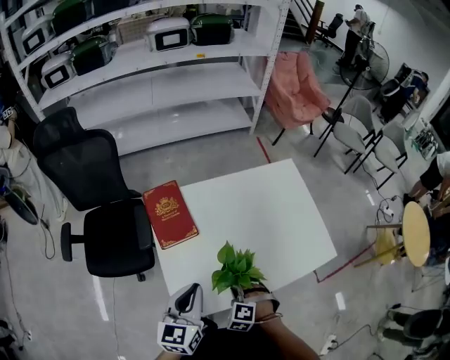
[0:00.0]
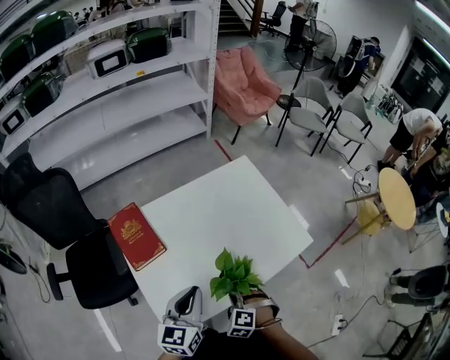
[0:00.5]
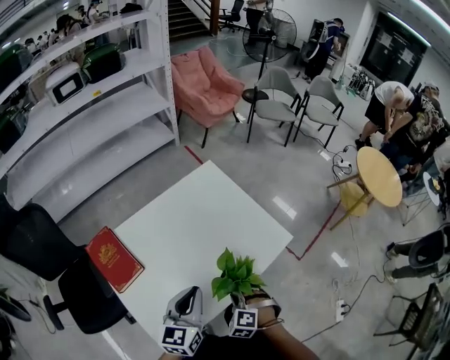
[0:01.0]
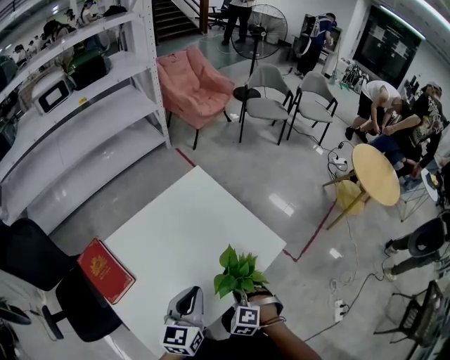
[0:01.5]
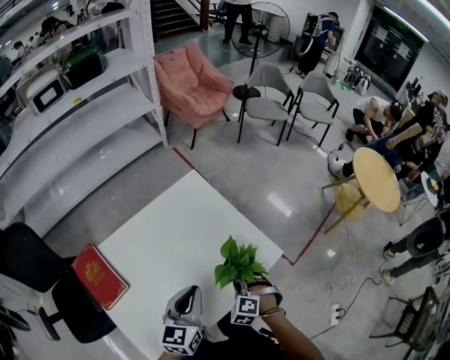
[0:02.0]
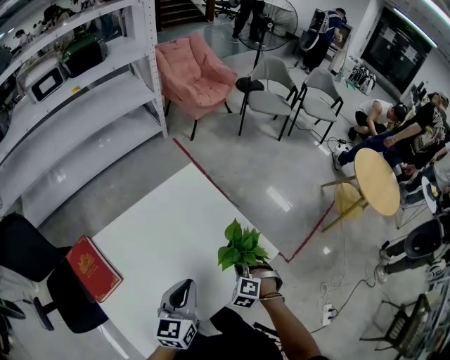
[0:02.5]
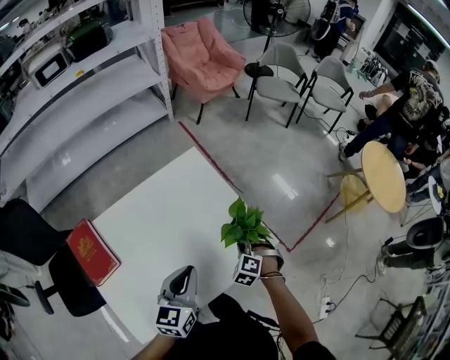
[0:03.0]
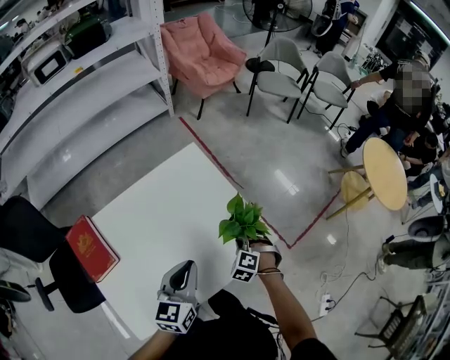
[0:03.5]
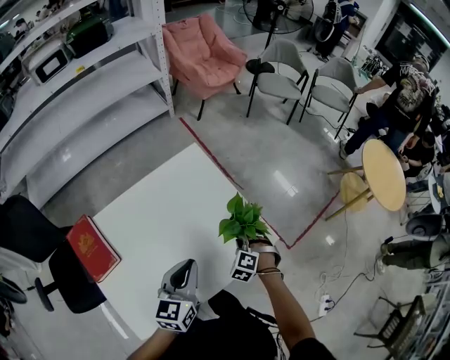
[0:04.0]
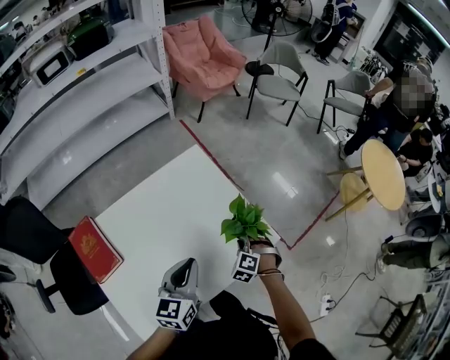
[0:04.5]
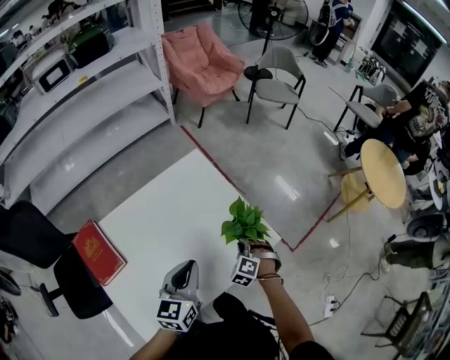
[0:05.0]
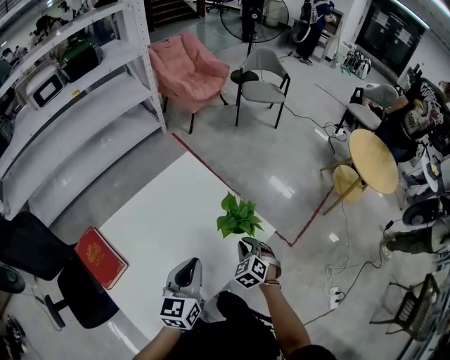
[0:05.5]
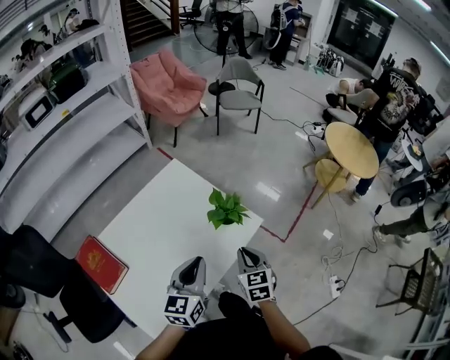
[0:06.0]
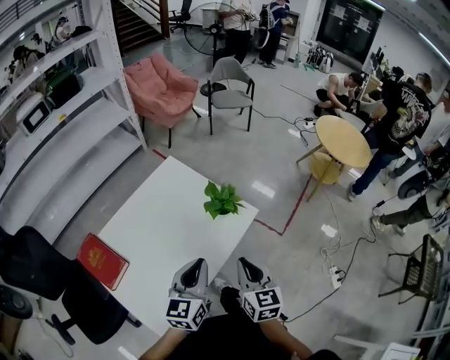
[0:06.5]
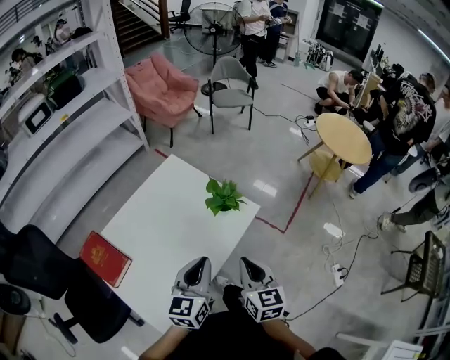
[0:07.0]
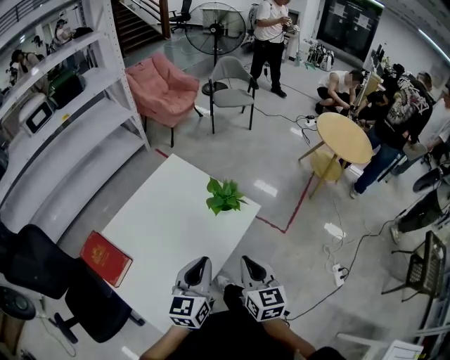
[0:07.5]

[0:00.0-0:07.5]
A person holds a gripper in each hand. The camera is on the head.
0:00.0 to 0:02.0: The left gripper shifts by some 30 cm, and turns by about 30 degrees; the right gripper moves roughly 30 cm, and rotates roughly 30 degrees.
0:02.0 to 0:04.0: The right gripper is displaced forward by some 10 cm.
0:04.0 to 0:05.5: The right gripper moves upward, approximately 10 cm, and rotates about 30 degrees.
0:05.5 to 0:07.5: The right gripper heads backward and upward, covering roughly 25 cm, and rolls clockwise, seen from behind, by roughly 50 degrees. Meanwhile the left gripper moves backward, roughly 10 cm.

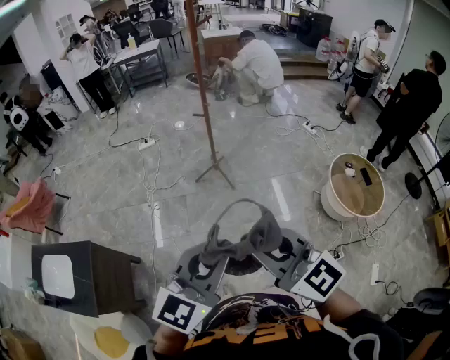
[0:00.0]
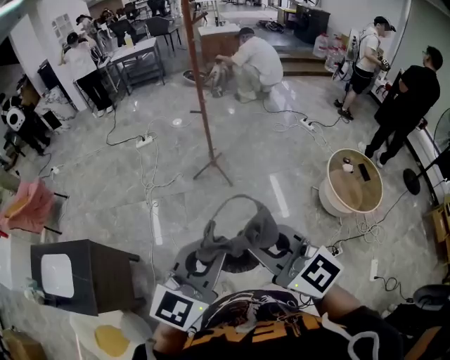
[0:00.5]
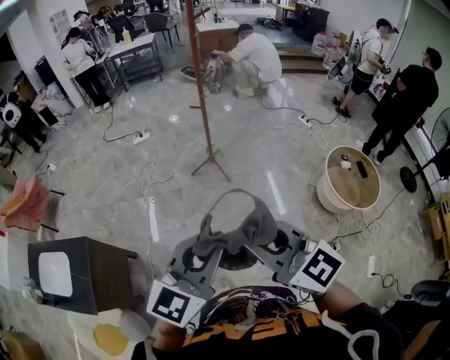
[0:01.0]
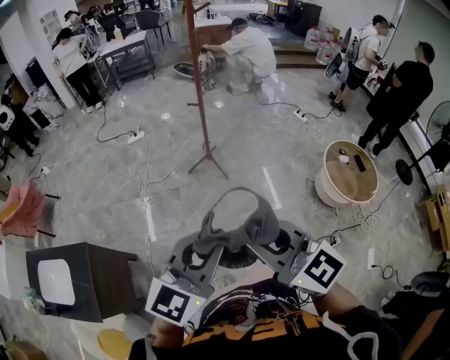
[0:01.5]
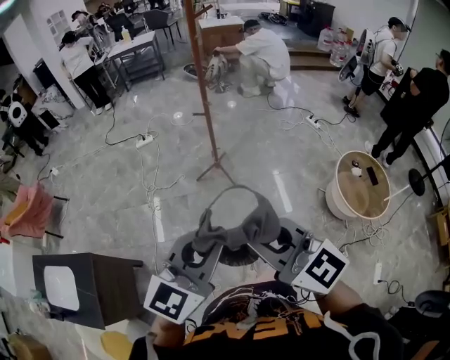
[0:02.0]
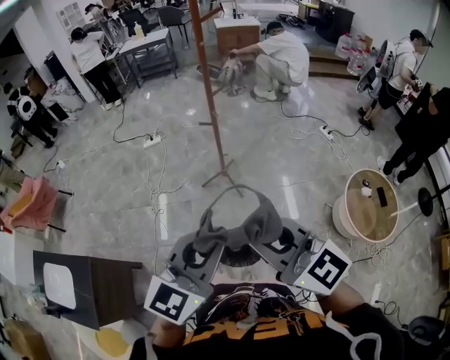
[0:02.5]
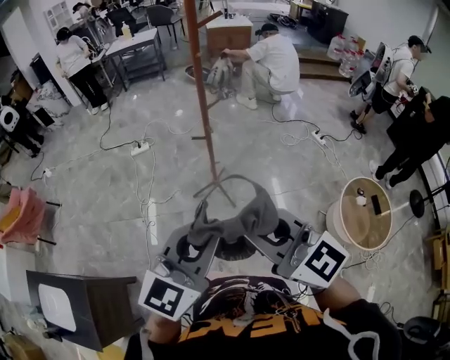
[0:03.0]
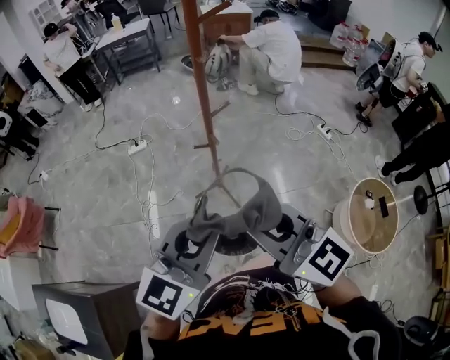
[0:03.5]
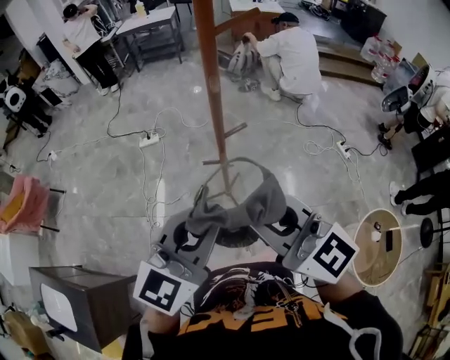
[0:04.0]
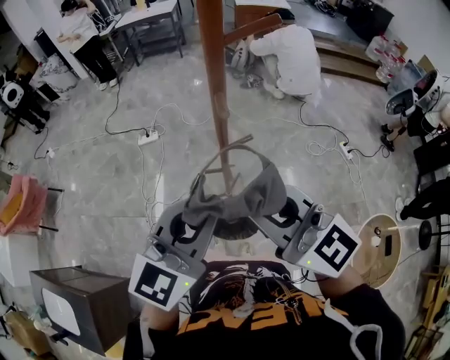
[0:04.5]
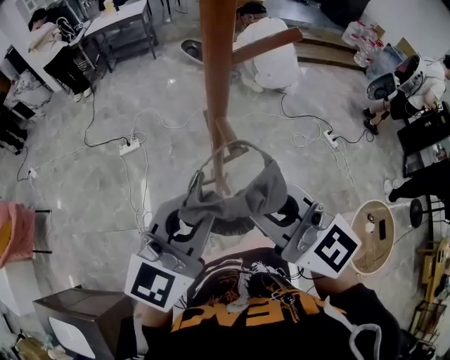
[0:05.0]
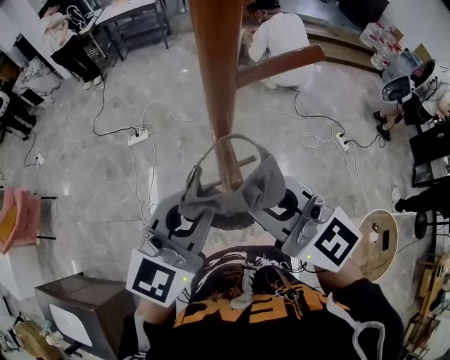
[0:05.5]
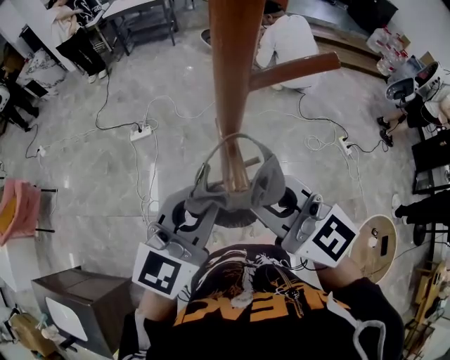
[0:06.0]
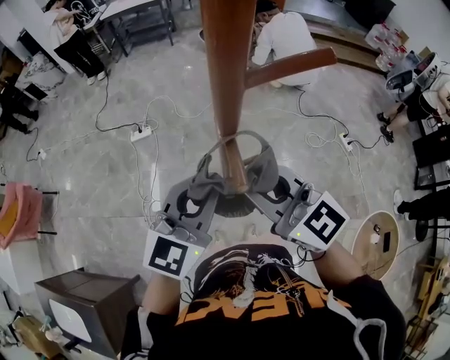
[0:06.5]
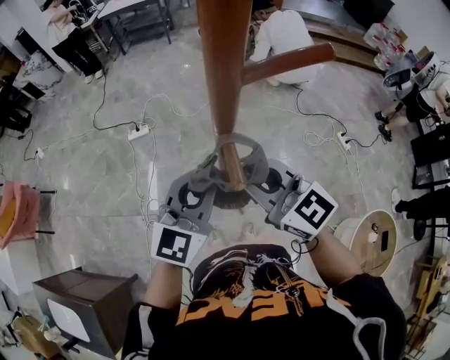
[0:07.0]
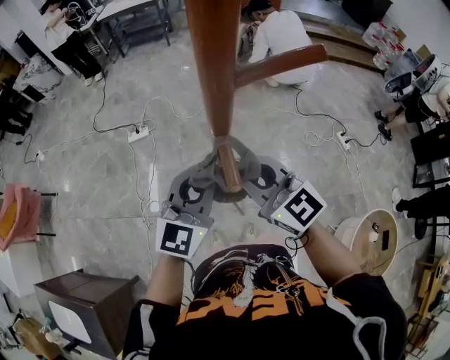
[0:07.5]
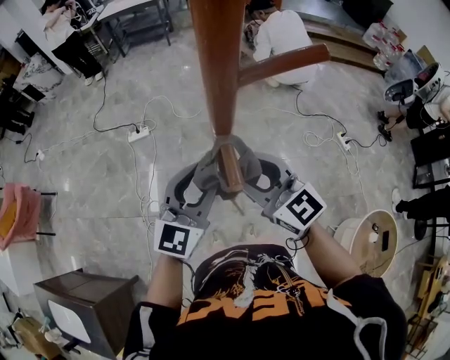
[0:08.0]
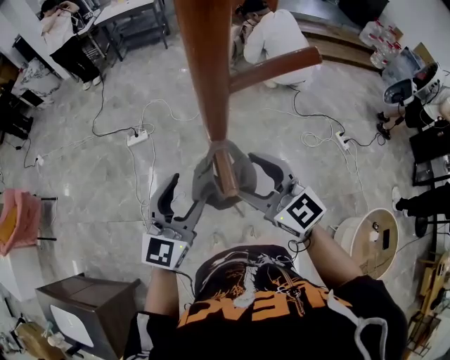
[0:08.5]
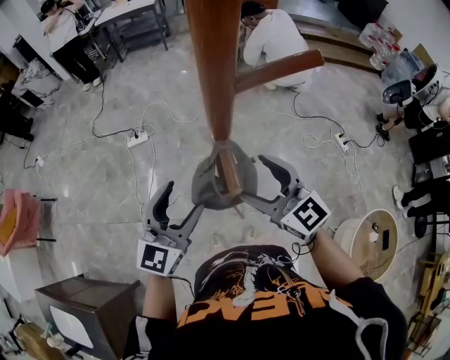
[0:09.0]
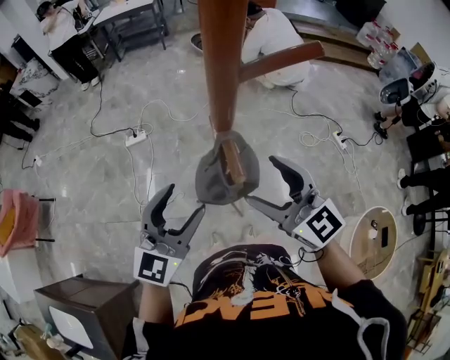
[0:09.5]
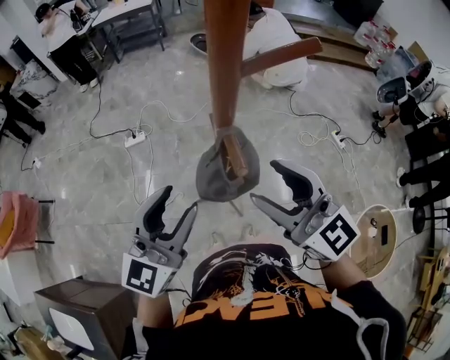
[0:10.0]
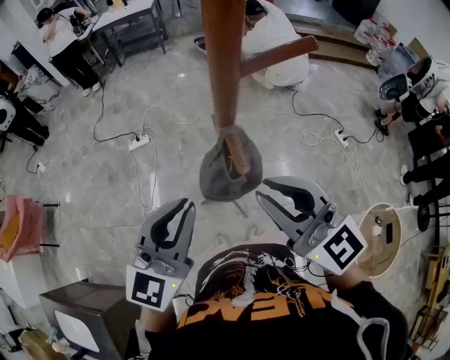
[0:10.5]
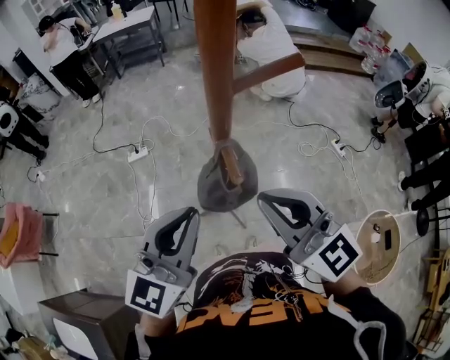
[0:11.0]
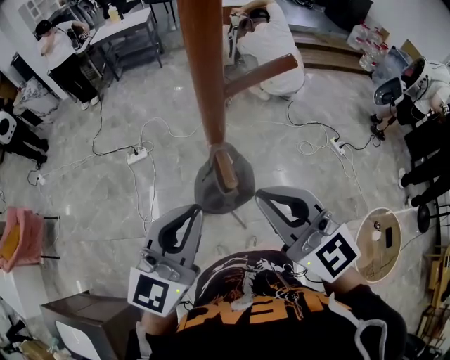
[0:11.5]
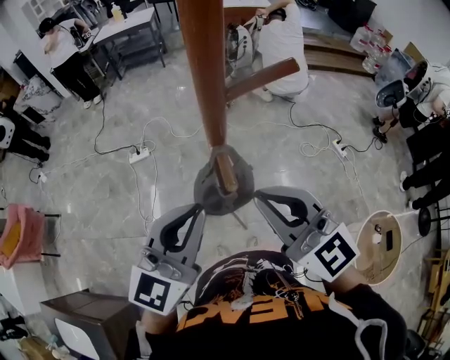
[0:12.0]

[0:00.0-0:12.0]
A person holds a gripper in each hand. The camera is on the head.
0:00.0 to 0:02.0: Both grippers travel together forward, roughly 15 cm.
0:02.0 to 0:04.0: The two grippers travel together, forward, about 50 cm.
0:04.0 to 0:06.0: The grippers both shift forward by roughly 20 cm.
0:06.0 to 0:08.0: Both grippers move downward, some 10 cm. The left gripper opens; the right gripper opens its fingers.
0:08.0 to 0:10.0: The left gripper is displaced to the left, backward and upward by about 10 cm. Meanwhile the right gripper goes some 10 cm upward and backward.
0:10.0 to 0:12.0: The right gripper closes. Meanwhile the left gripper ends up some 5 cm from where it was, and closes its fingers.

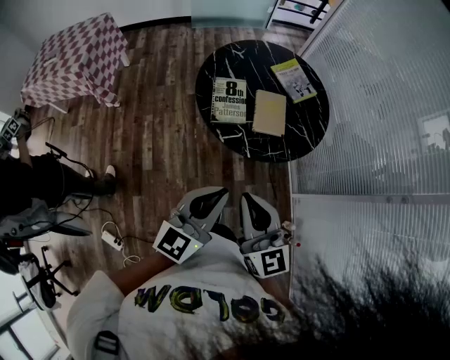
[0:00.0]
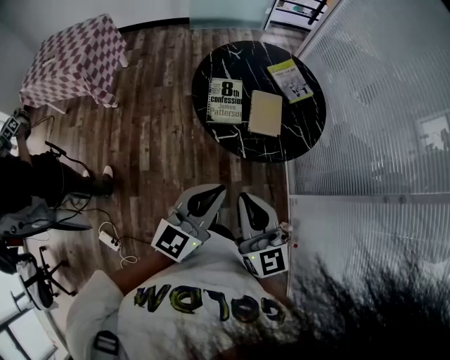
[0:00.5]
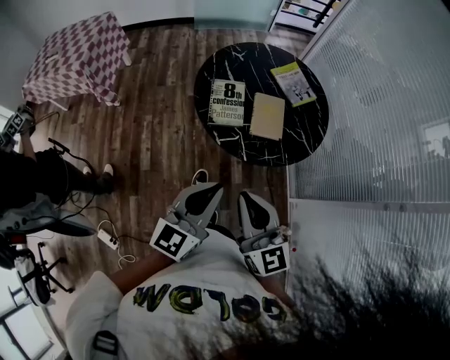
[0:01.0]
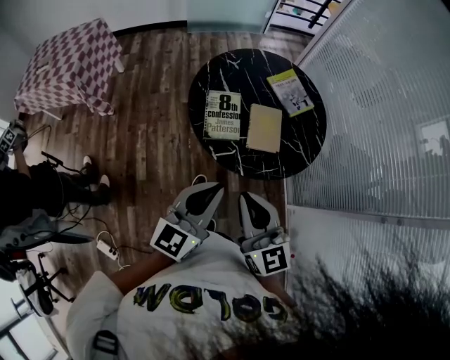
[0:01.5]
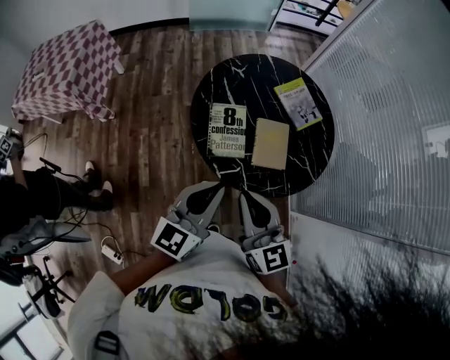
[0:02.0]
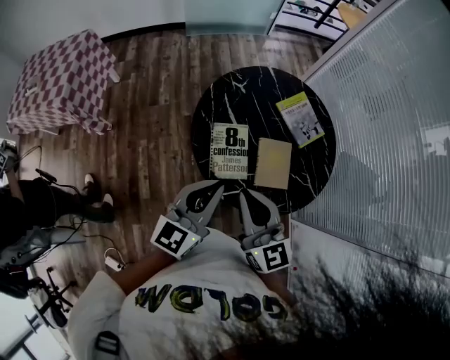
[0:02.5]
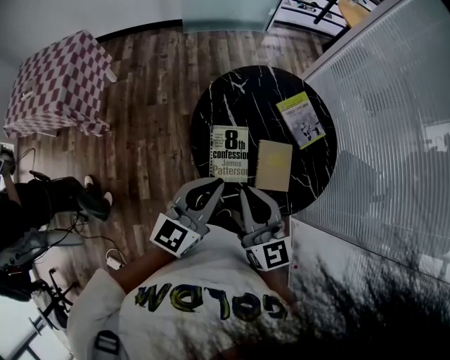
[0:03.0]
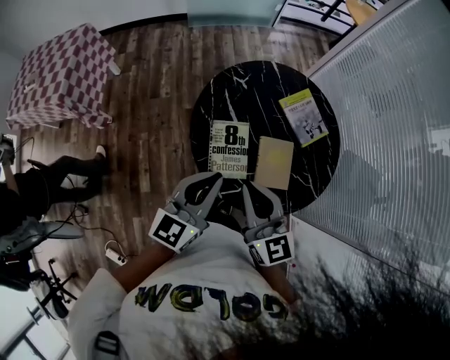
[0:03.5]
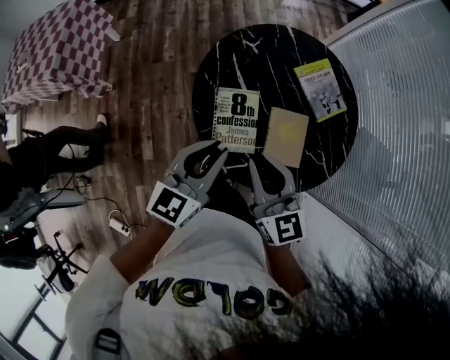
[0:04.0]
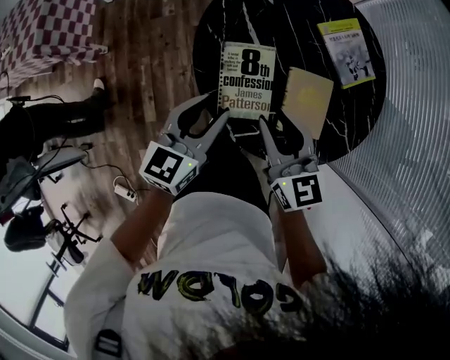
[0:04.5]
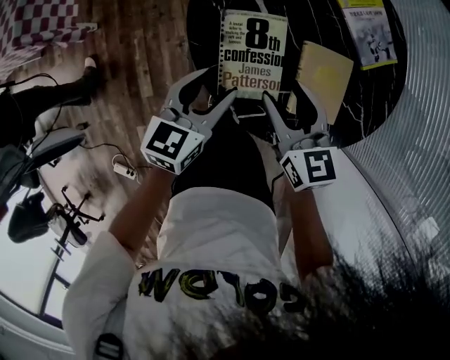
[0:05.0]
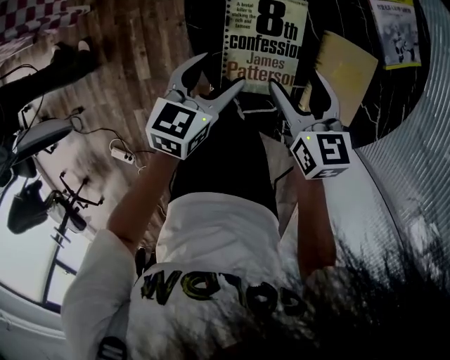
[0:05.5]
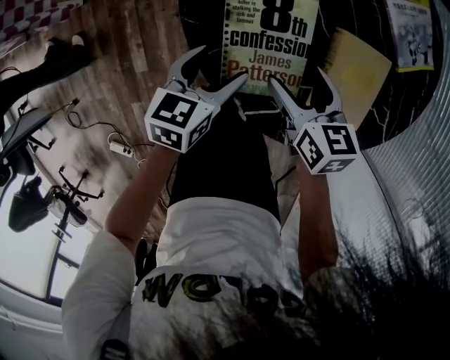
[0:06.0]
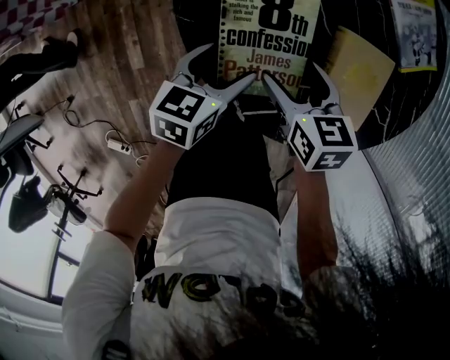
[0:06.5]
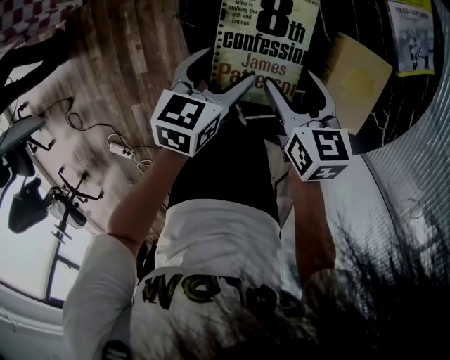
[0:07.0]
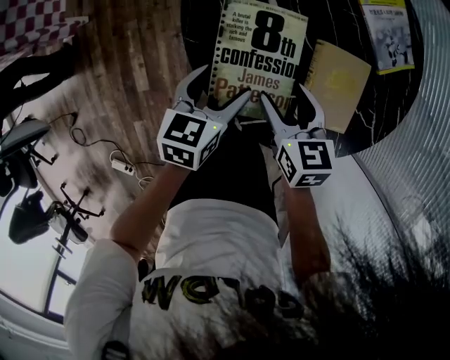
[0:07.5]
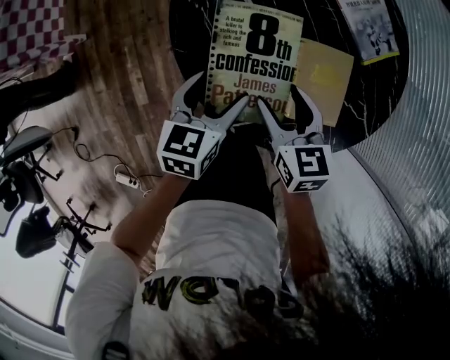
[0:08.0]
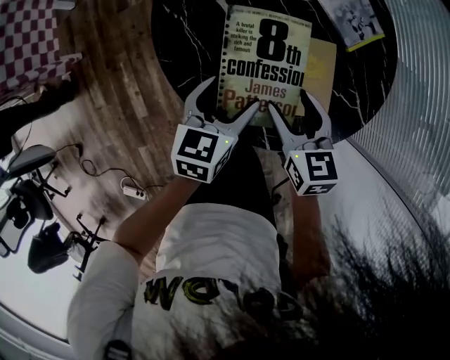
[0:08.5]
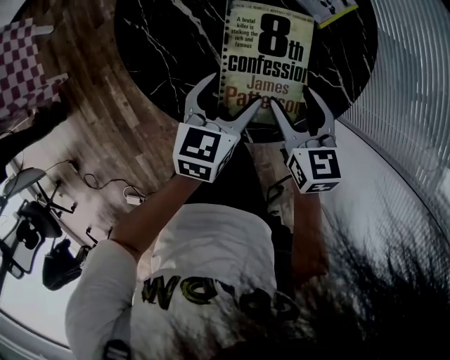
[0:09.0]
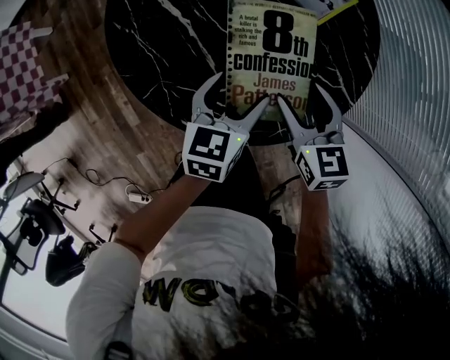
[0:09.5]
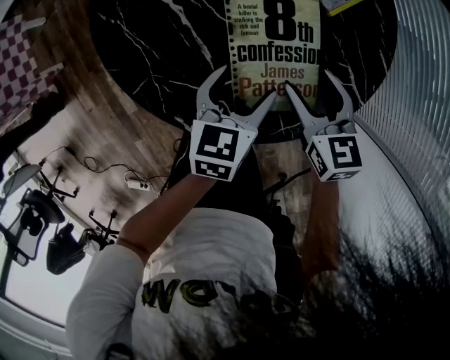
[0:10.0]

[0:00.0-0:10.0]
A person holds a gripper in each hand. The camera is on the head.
0:00.0 to 0:02.0: Both grippers move forward, approximately 20 cm.
0:02.0 to 0:04.0: The left gripper goes about 20 cm forward and downward. Meanwhile the right gripper goes roughly 15 cm forward.
0:04.0 to 0:06.0: The grippers both shift downward by roughly 35 cm. The right gripper tips its fingers downward by about 30 degrees, and opens, while the left gripper turns by about 30 degrees, and opens.
0:06.0 to 0:08.0: The two grippers go some 10 cm upward.
0:08.0 to 0:10.0: Both grippers move to the right, about 20 cm.
